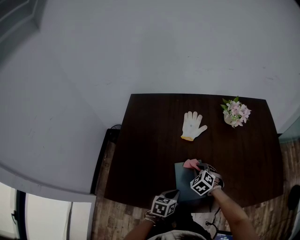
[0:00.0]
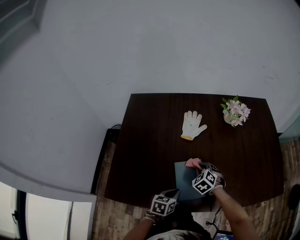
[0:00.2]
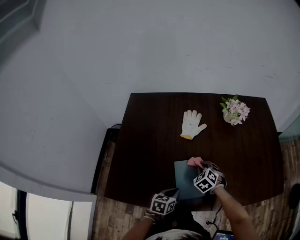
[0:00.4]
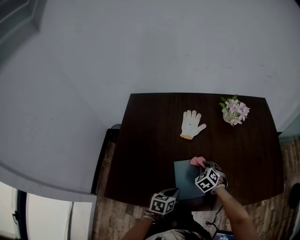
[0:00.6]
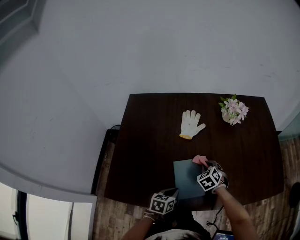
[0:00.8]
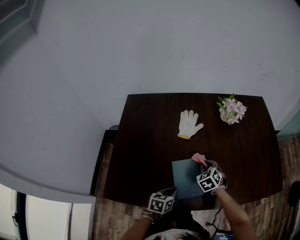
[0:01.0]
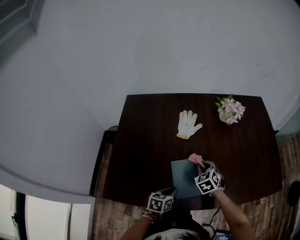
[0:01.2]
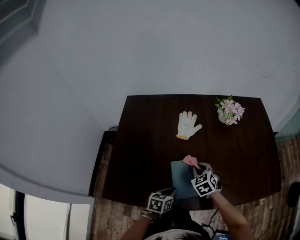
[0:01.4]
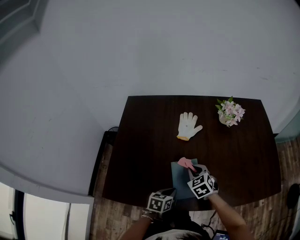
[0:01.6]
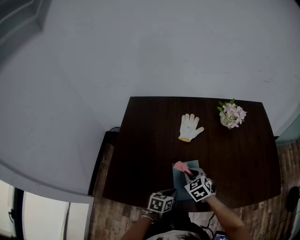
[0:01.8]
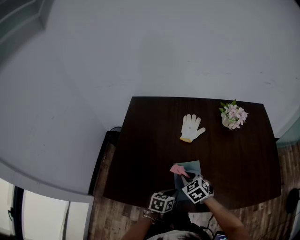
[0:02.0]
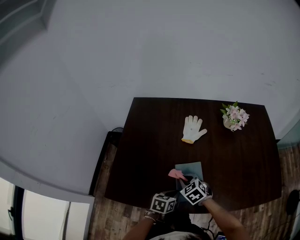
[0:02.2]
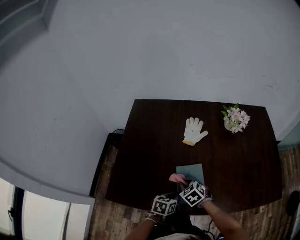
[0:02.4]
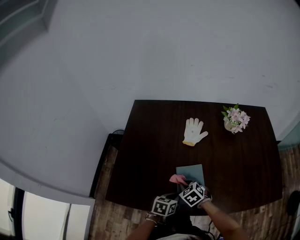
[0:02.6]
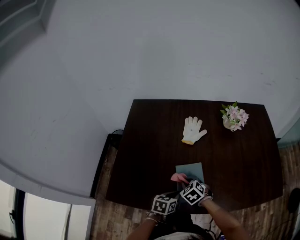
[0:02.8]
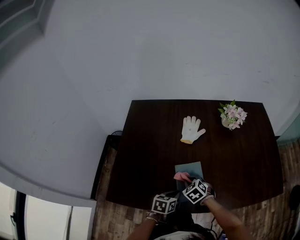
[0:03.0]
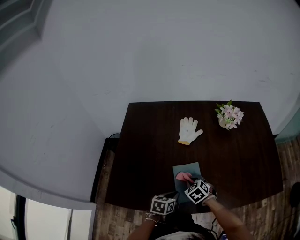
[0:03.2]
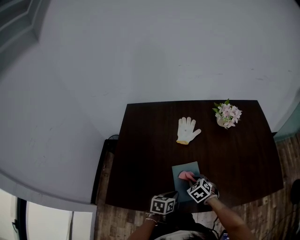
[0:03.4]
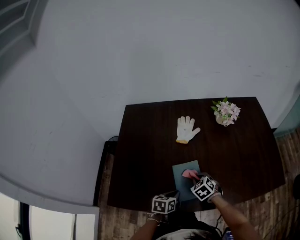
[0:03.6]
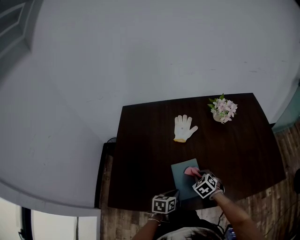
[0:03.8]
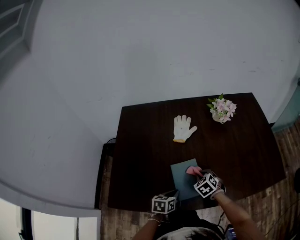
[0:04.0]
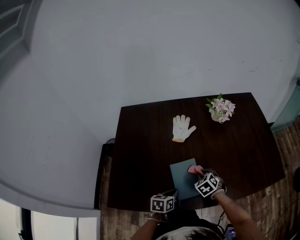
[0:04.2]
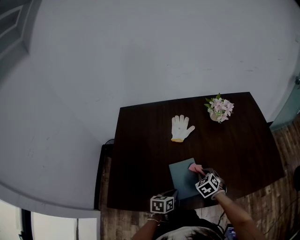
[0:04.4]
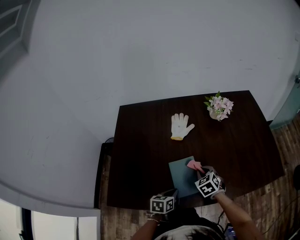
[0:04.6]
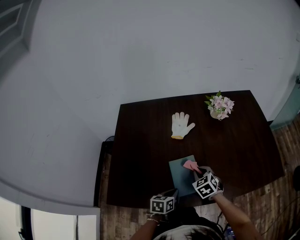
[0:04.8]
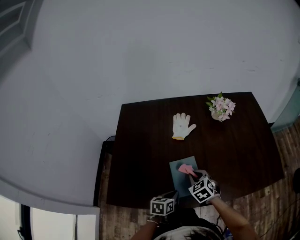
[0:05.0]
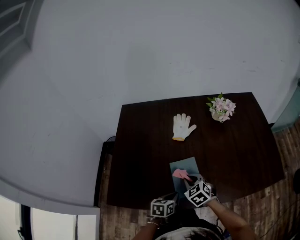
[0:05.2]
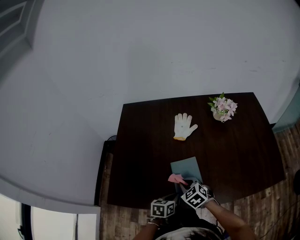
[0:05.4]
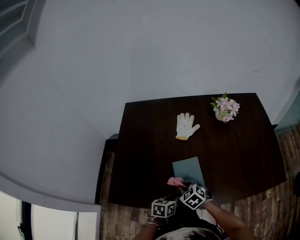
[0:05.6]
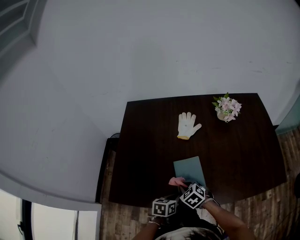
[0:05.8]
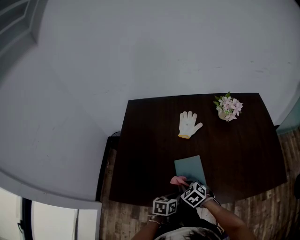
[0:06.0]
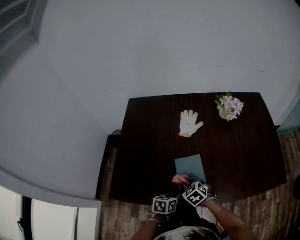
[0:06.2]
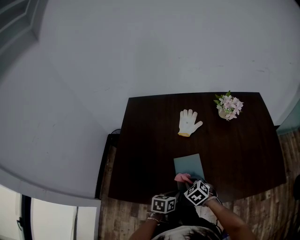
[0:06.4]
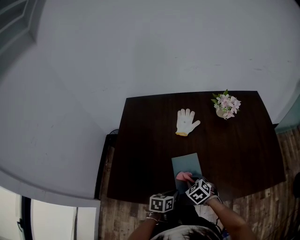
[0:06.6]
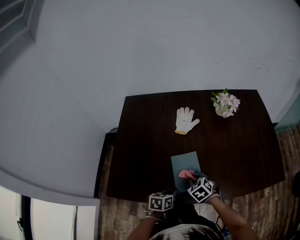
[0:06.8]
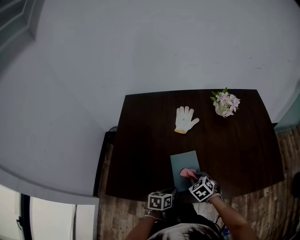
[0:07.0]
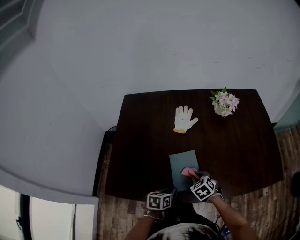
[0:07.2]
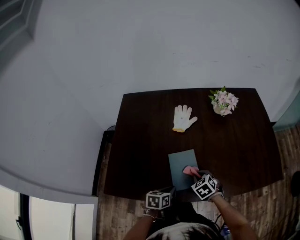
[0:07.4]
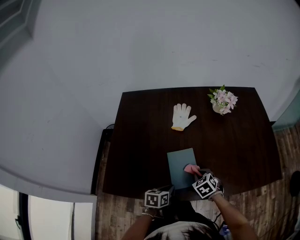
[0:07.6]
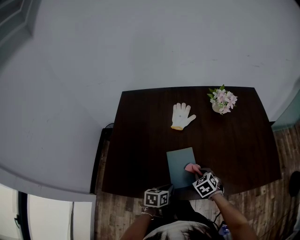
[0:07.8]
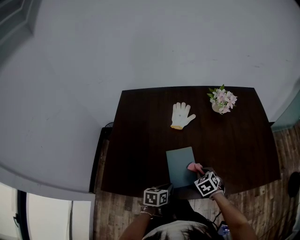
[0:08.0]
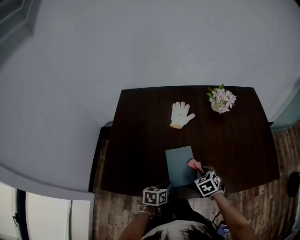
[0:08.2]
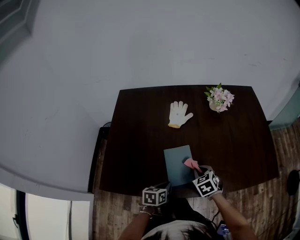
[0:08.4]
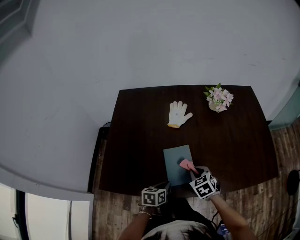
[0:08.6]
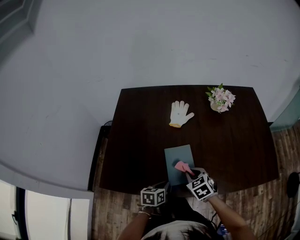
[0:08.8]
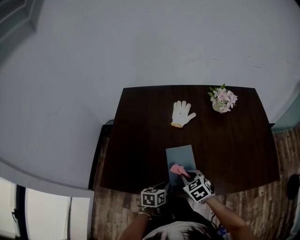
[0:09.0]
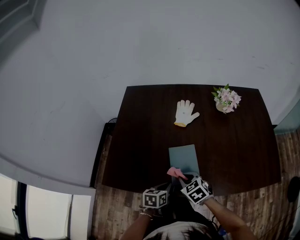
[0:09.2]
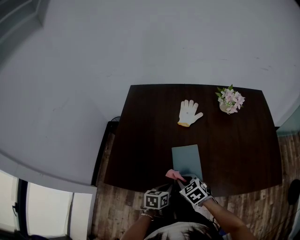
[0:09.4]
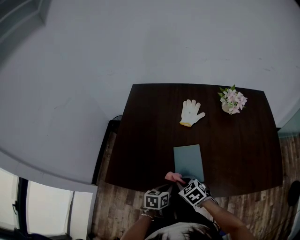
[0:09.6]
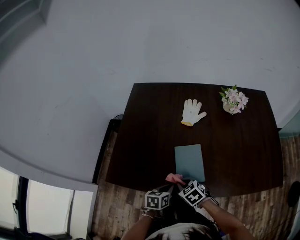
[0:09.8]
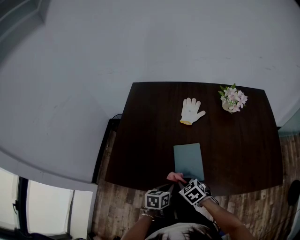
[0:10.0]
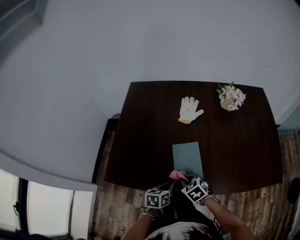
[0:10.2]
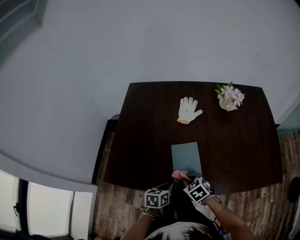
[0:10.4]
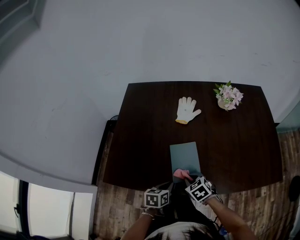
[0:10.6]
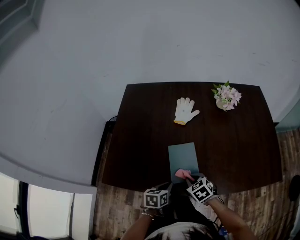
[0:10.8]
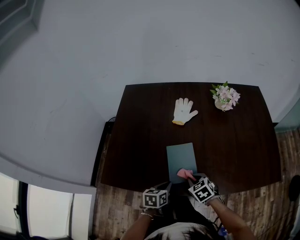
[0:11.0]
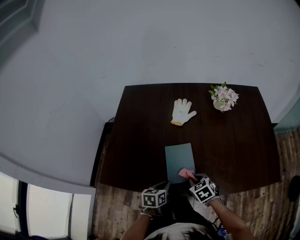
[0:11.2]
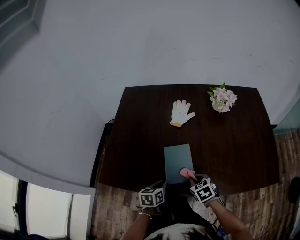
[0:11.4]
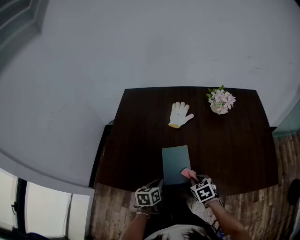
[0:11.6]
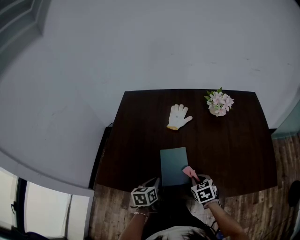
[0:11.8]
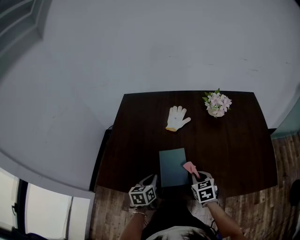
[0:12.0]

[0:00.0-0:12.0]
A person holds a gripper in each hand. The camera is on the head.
0:00.0 to 0:01.6: The right gripper is displaced upward by about 5 cm.
0:01.6 to 0:03.0: The right gripper heads downward, covering approximately 5 cm.
0:03.0 to 0:04.4: The right gripper goes approximately 10 cm to the right.
0:04.4 to 0:06.0: The right gripper travels to the left and backward by about 15 cm, and turns by approximately 20 degrees.
0:06.0 to 0:07.6: The right gripper travels to the right by roughly 10 cm.
0:07.6 to 0:09.0: The right gripper shifts approximately 5 cm to the left.
0:10.4 to 0:12.0: The right gripper goes approximately 15 cm to the right, and changes its angle by about 30 degrees; the left gripper moves upward and forward, roughly 10 cm.

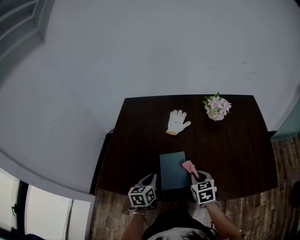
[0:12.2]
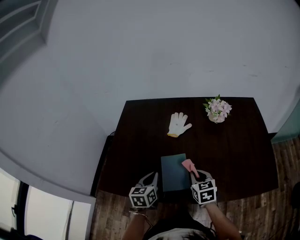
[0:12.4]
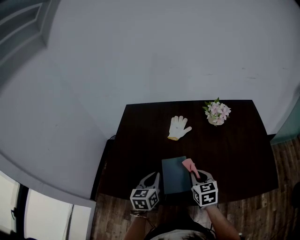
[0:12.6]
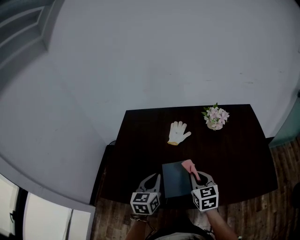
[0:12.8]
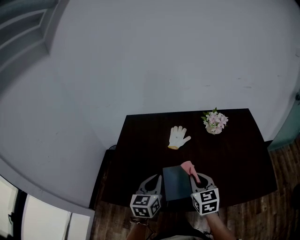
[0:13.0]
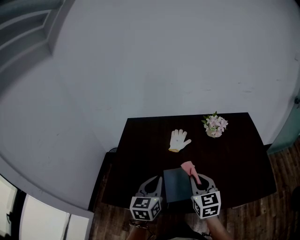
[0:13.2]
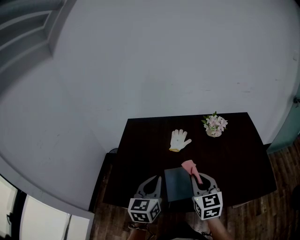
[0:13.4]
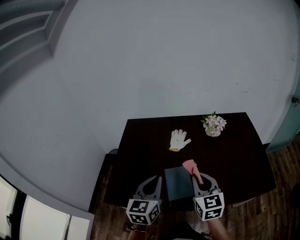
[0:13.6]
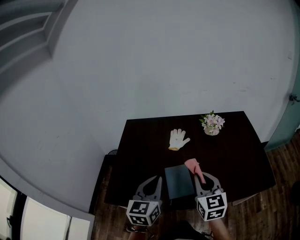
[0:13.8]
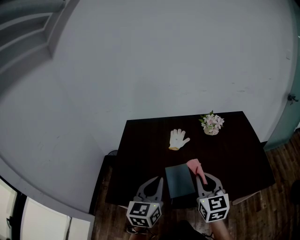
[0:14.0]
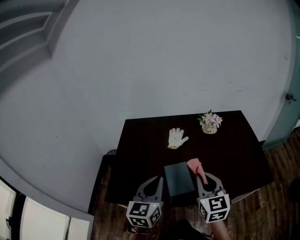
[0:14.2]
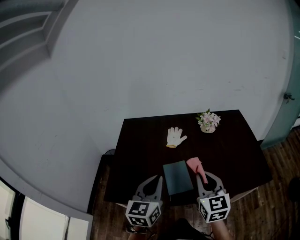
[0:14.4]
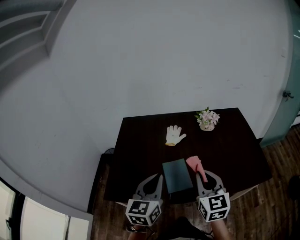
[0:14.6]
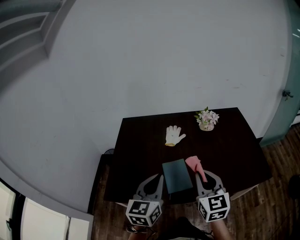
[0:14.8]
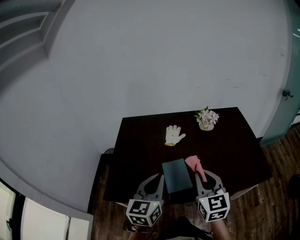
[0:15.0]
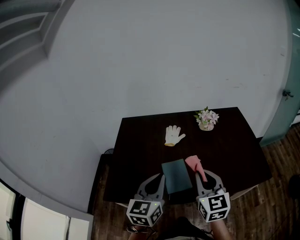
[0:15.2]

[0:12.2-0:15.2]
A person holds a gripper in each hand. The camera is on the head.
0:12.2 to 0:13.8: The two grippers go some 20 cm upward. The right gripper turns by about 30 degrees. Meanwhile the left gripper rotates roughly 30 degrees.
0:13.8 to 0:15.2: The right gripper moves about 5 cm.

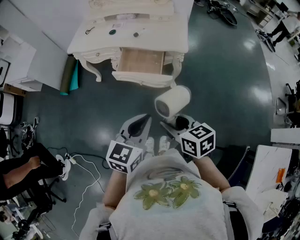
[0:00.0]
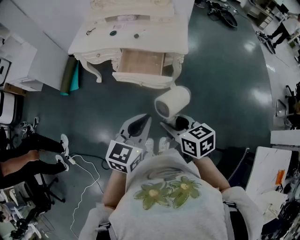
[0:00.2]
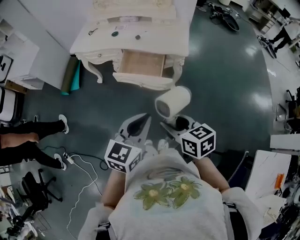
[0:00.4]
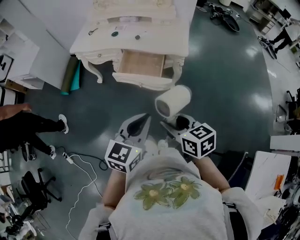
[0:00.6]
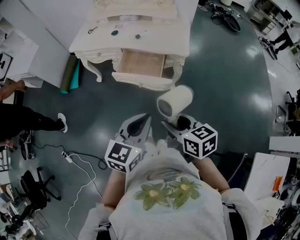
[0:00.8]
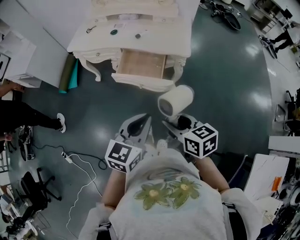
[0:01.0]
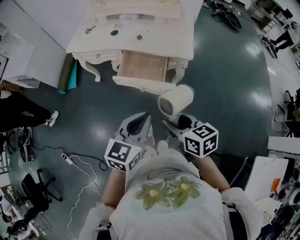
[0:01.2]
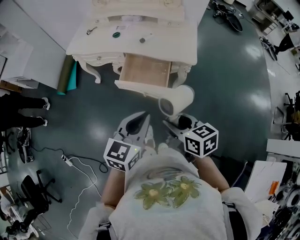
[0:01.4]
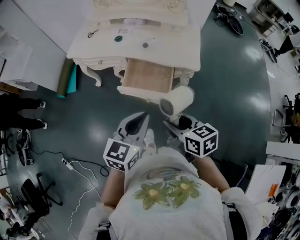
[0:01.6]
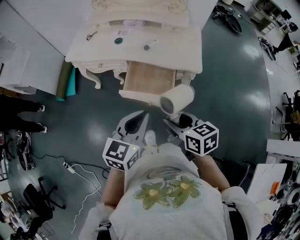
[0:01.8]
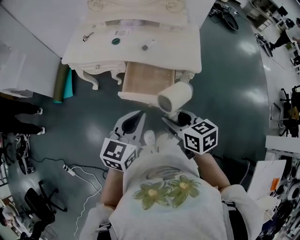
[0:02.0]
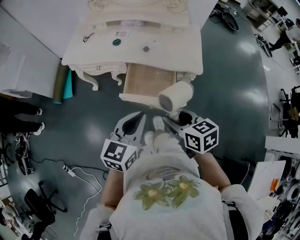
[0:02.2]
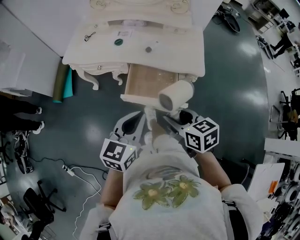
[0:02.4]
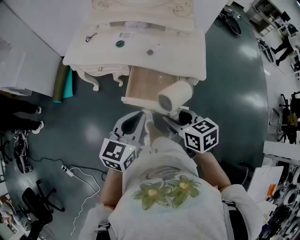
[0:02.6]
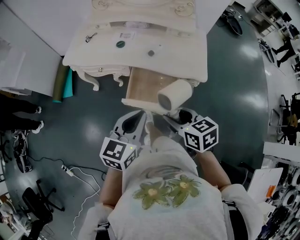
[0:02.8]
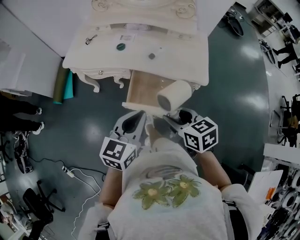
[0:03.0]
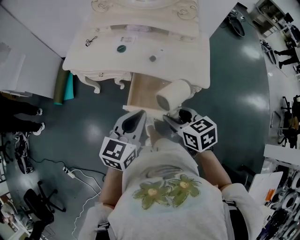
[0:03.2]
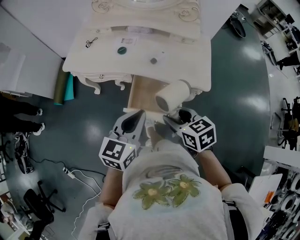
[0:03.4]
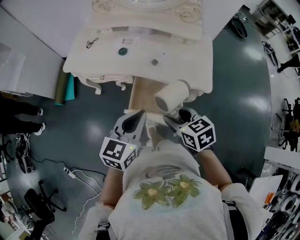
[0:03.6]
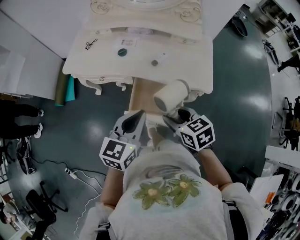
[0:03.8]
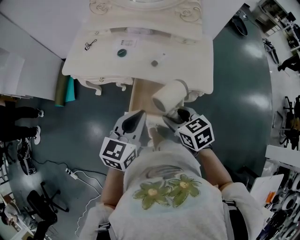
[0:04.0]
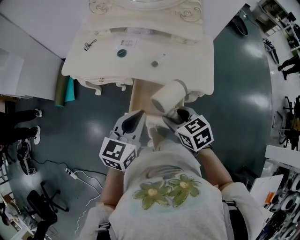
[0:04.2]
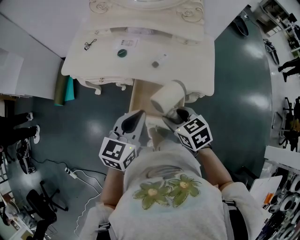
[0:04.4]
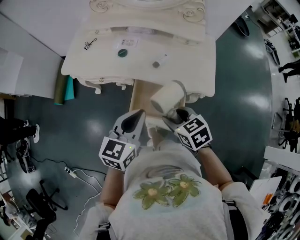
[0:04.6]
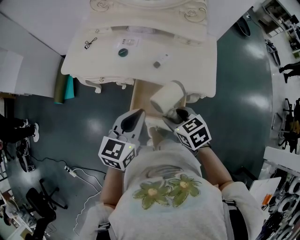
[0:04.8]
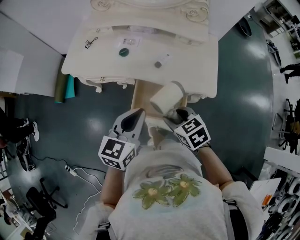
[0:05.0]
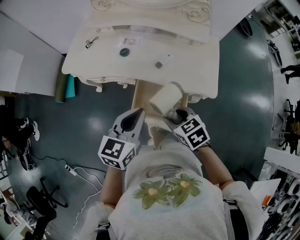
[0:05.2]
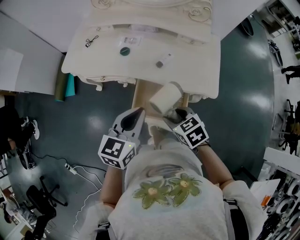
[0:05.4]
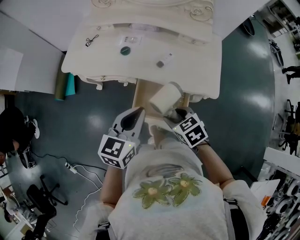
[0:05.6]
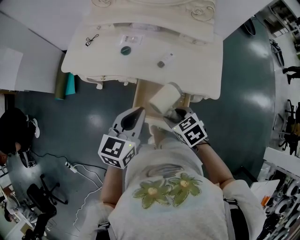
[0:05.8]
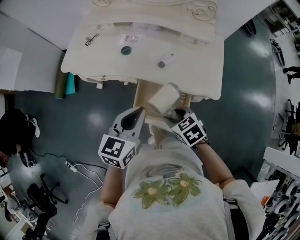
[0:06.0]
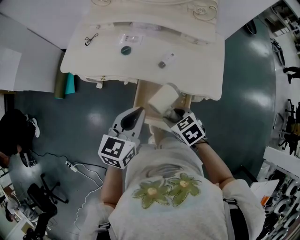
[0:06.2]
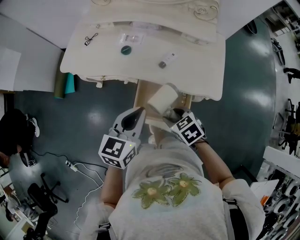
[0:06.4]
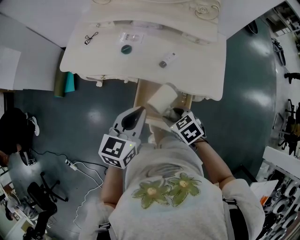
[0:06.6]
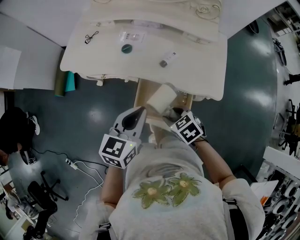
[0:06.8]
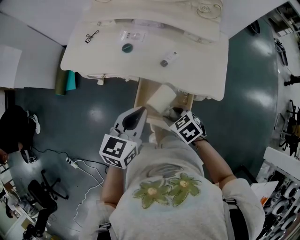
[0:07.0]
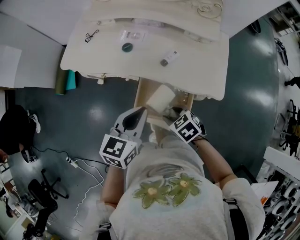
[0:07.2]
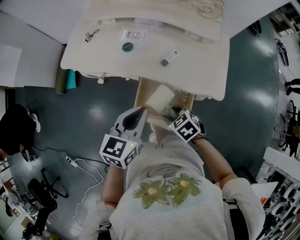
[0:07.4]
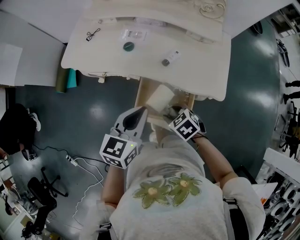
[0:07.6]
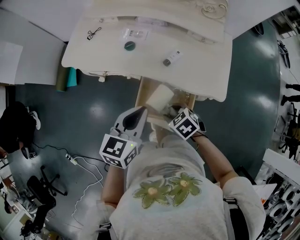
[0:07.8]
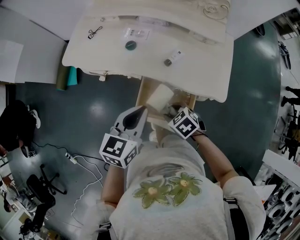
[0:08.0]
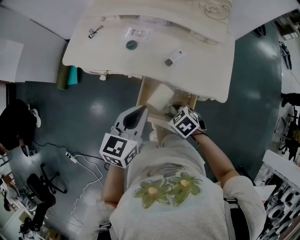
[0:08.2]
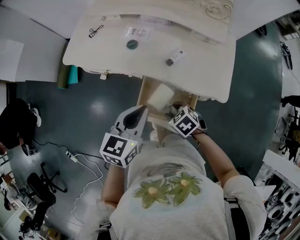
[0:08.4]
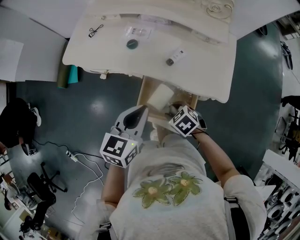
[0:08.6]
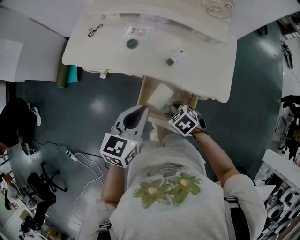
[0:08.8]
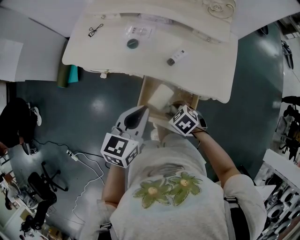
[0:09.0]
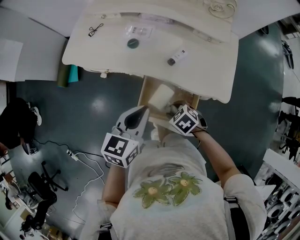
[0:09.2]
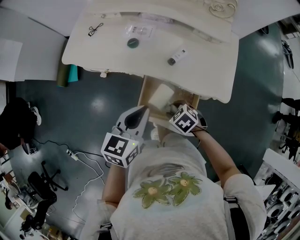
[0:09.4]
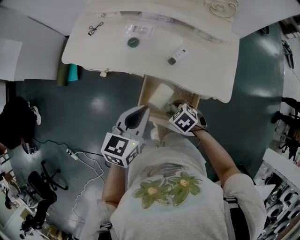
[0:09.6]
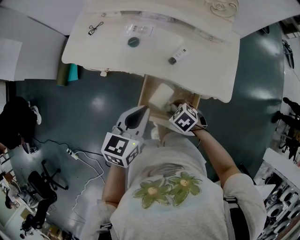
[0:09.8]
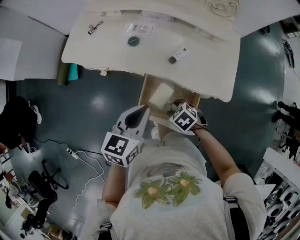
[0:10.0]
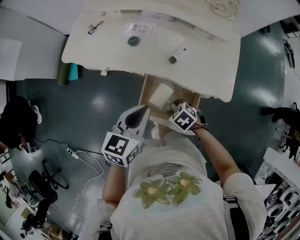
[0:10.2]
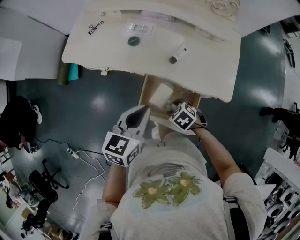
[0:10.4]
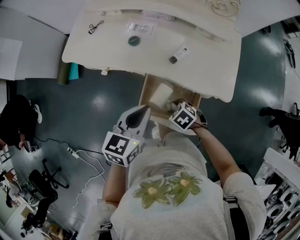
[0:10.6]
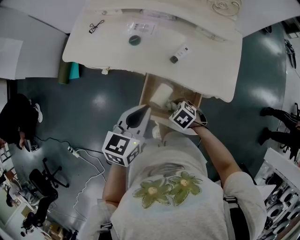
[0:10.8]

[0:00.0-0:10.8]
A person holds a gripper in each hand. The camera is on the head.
0:00.0 to 0:01.6: The two grippers go approximately 15 cm forward.
0:01.6 to 0:03.0: The right gripper travels forward by about 15 cm, while the left gripper goes approximately 15 cm forward and to the left.
0:03.0 to 0:04.6: Both grippers travel together forward, about 10 cm.
0:04.6 to 0:06.2: The left gripper moves about 5 cm. The right gripper heads downward, covering about 5 cm.
0:06.2 to 0:07.8: The right gripper shifts about 5 cm downward.
0:07.8 to 0:09.2: The grippers move only a little.
0:09.2 to 0:10.8: The grippers make only small movements.
